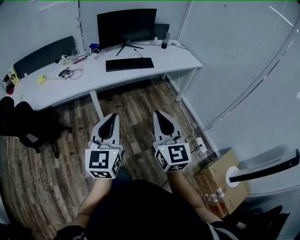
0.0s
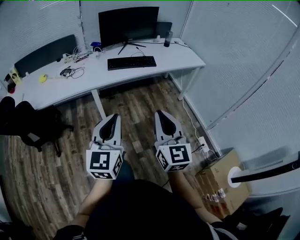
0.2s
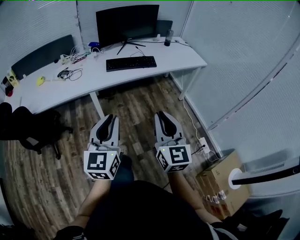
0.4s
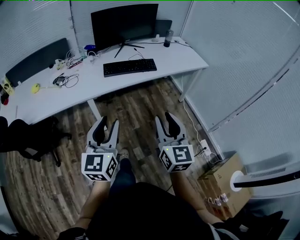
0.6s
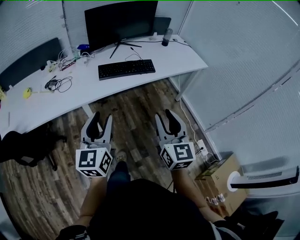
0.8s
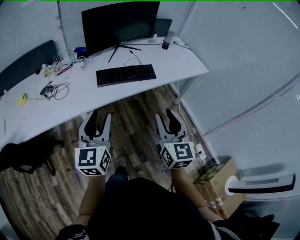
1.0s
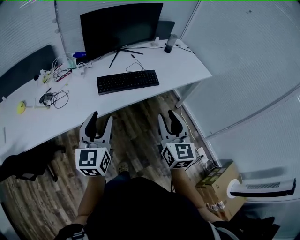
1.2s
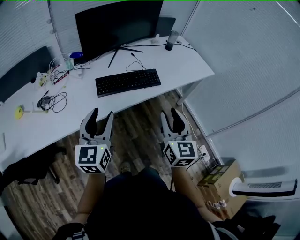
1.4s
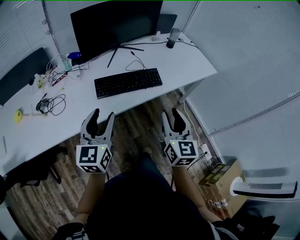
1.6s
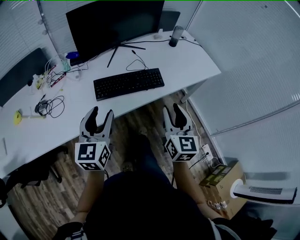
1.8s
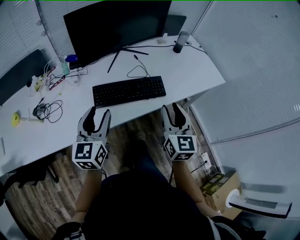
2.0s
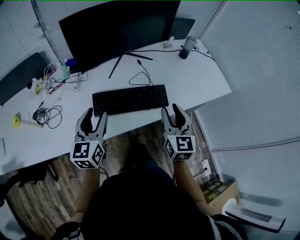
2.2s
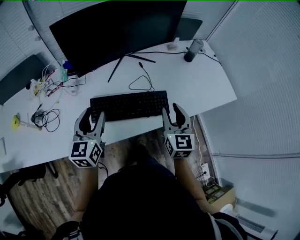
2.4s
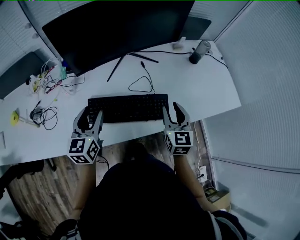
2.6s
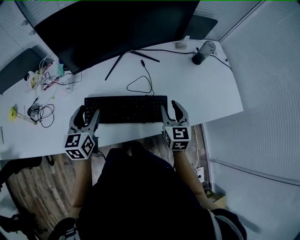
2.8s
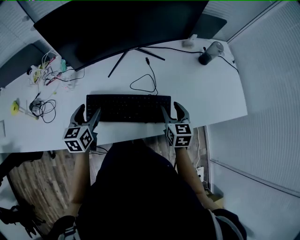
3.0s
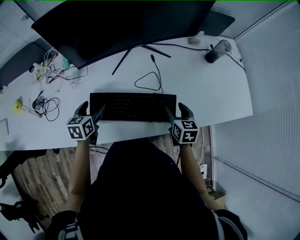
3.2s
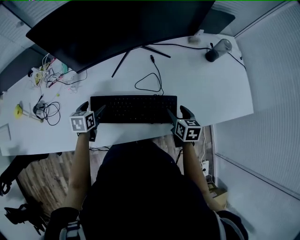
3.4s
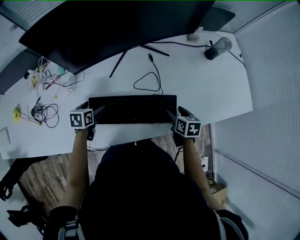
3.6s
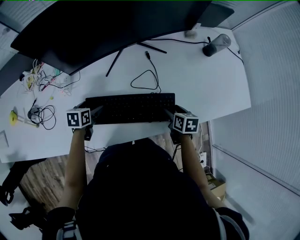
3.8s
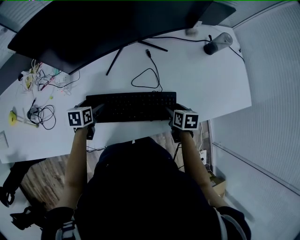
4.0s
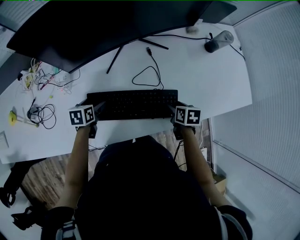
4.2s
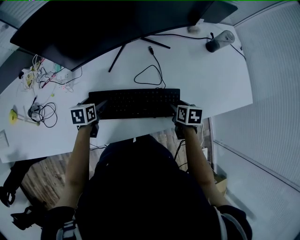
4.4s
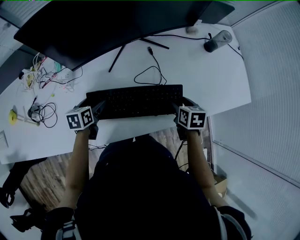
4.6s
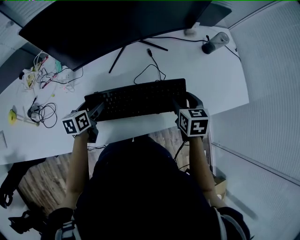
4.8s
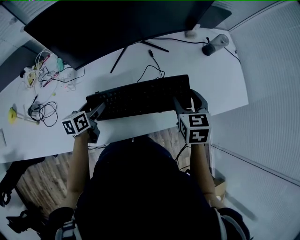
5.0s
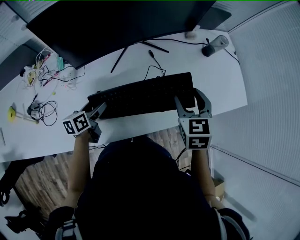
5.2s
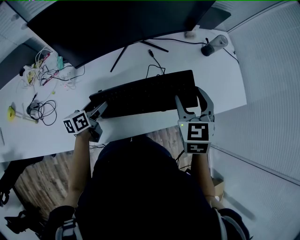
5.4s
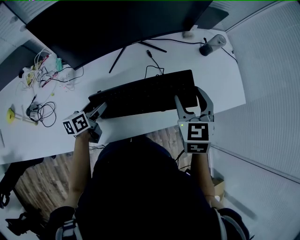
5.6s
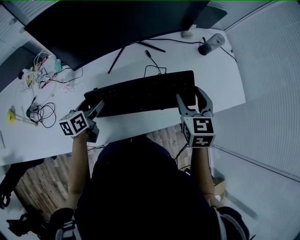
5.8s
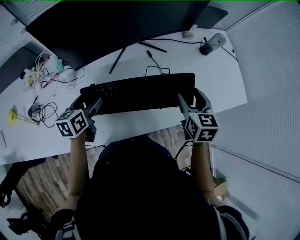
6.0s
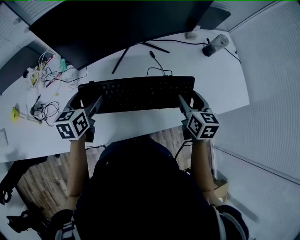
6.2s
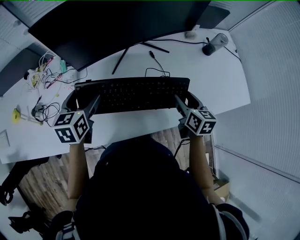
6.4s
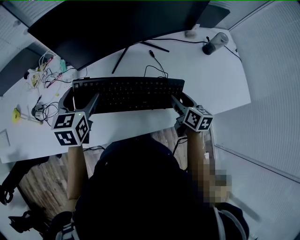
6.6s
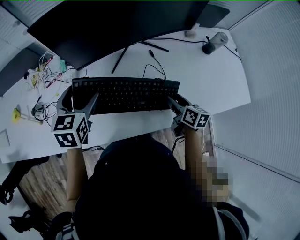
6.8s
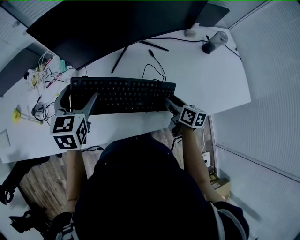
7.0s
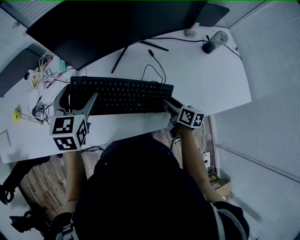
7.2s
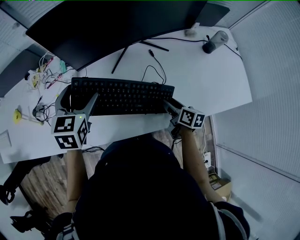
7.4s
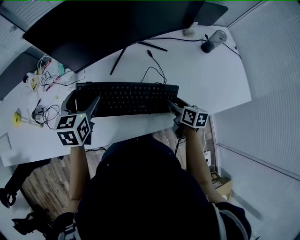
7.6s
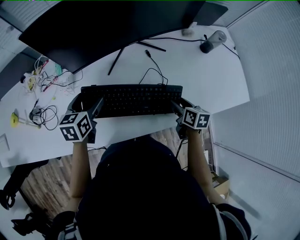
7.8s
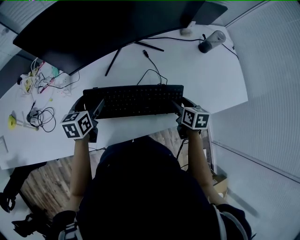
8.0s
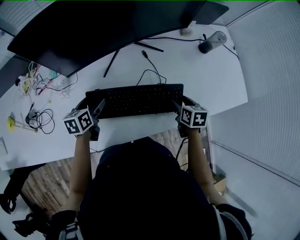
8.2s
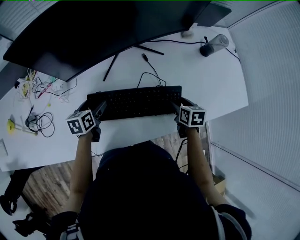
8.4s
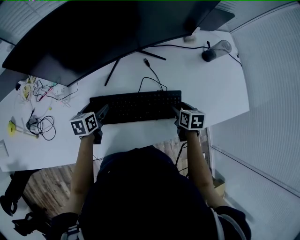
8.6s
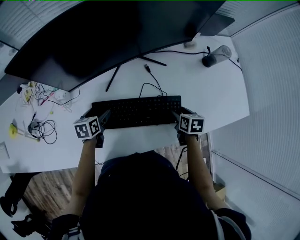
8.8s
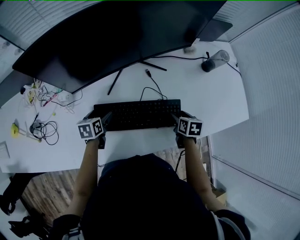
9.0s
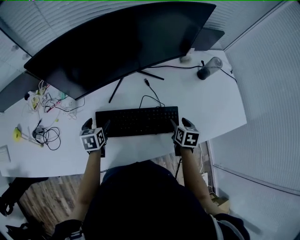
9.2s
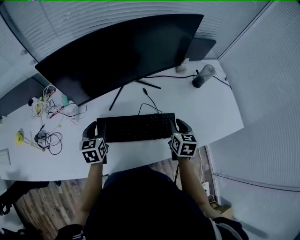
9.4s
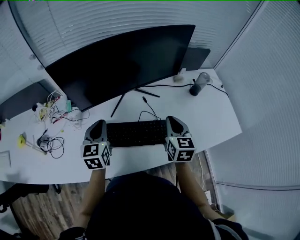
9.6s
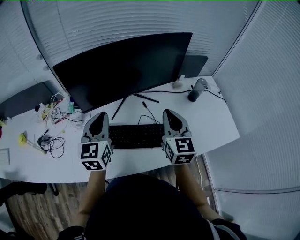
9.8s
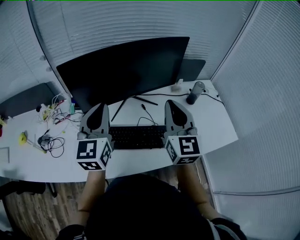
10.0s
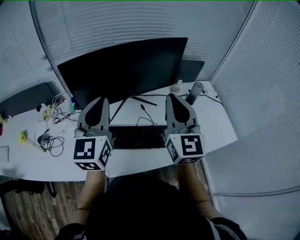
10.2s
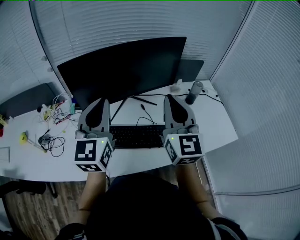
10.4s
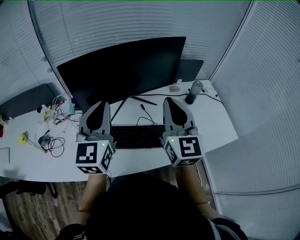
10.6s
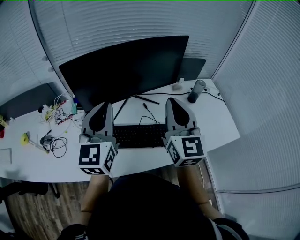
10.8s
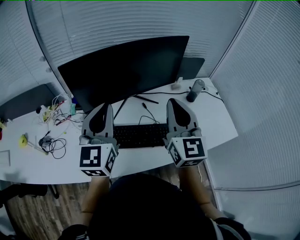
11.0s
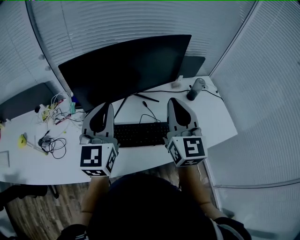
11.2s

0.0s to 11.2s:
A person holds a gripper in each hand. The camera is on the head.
0.0s to 1.6s: The pair of grippers is taken forward, roughly 40 cm. The right gripper opens its fingers. The left gripper opens its fingers.
1.6s to 3.2s: Both grippers travel together forward and downward, approximately 40 cm. The left gripper points its fingers approximately 30 degrees further downward, and opens its fingers. Meanwhile the right gripper tilts its fingers approximately 30 degrees downward, and opens.
3.2s to 4.8s: The right gripper shifts some 5 cm upward. Meanwhile the left gripper moves roughly 10 cm downward and comes back.
4.8s to 6.4s: The right gripper travels upward and back again, roughly 10 cm each way, and changes its angle by roughly 20 degrees, while the left gripper is displaced upward by about 15 cm, and swivels about 20 degrees.
6.4s to 8.0s: The grippers both shift downward by roughly 10 cm.
8.0s to 9.6s: The grippers both shift upward by about 15 cm. The right gripper swivels about 30 degrees, and closes its fingers, while the left gripper swivels some 30 degrees, and closes.
9.6s to 11.2s: Both grippers move upward, about 20 cm. The right gripper turns by approximately 30 degrees. The left gripper rotates approximately 20 degrees.

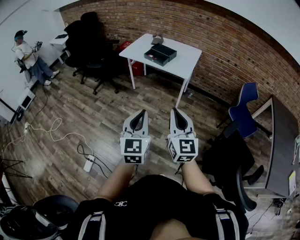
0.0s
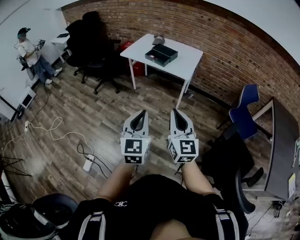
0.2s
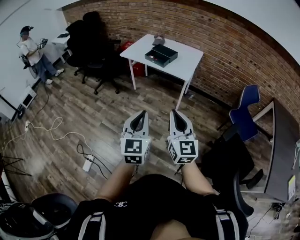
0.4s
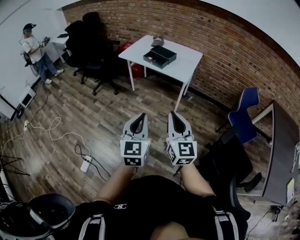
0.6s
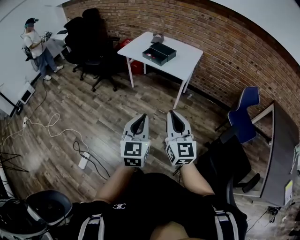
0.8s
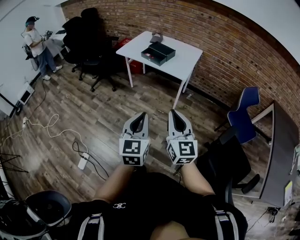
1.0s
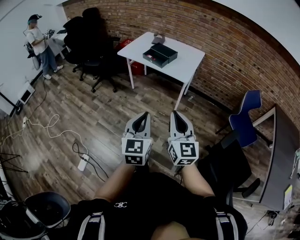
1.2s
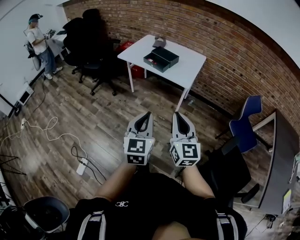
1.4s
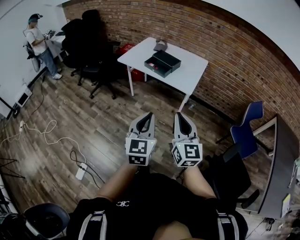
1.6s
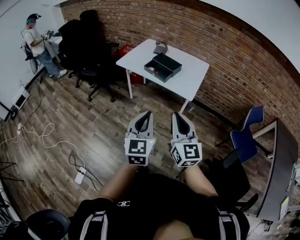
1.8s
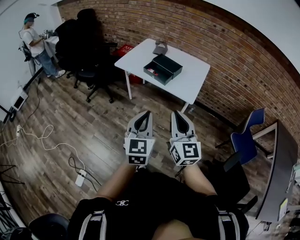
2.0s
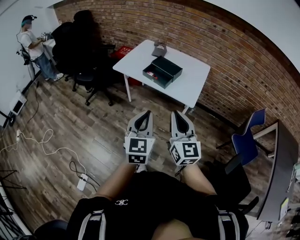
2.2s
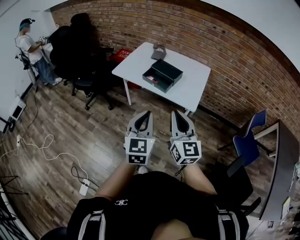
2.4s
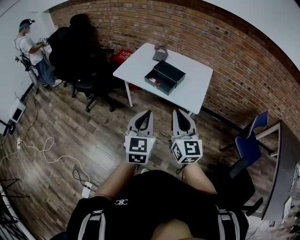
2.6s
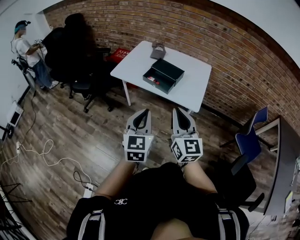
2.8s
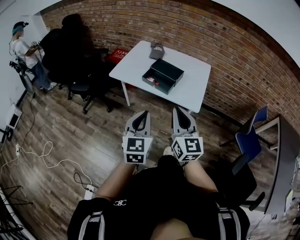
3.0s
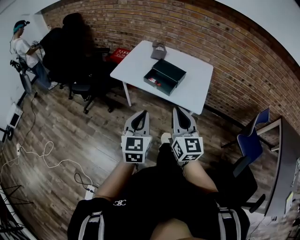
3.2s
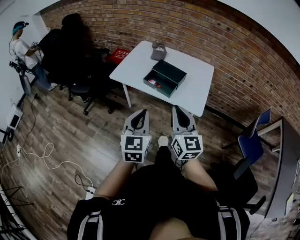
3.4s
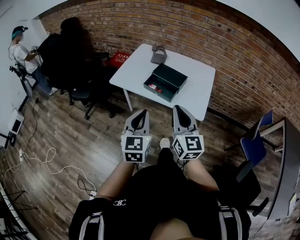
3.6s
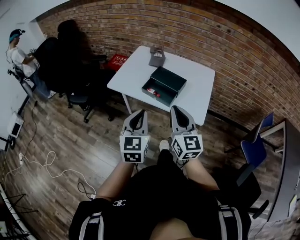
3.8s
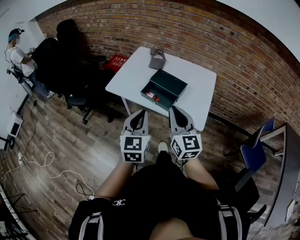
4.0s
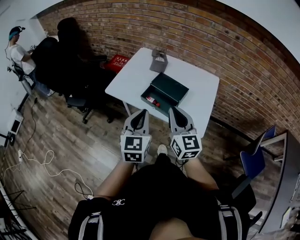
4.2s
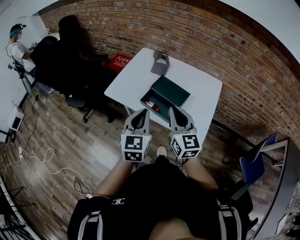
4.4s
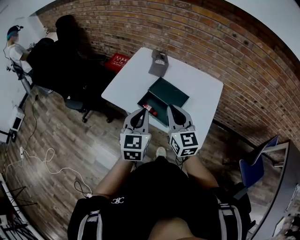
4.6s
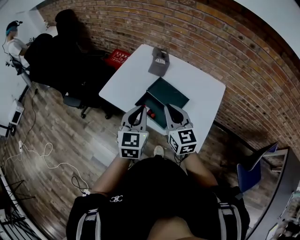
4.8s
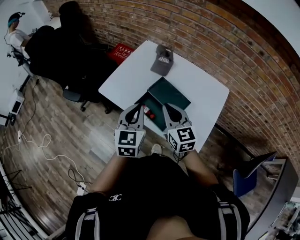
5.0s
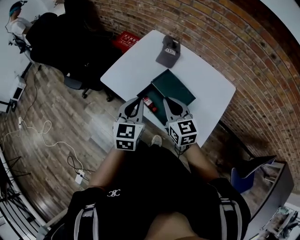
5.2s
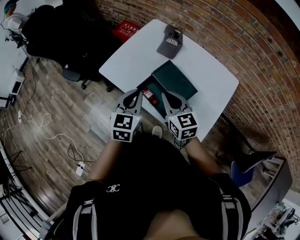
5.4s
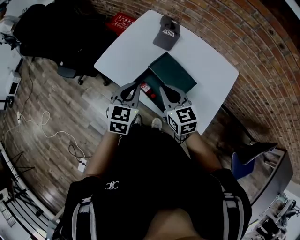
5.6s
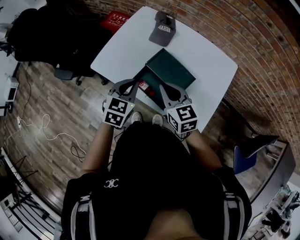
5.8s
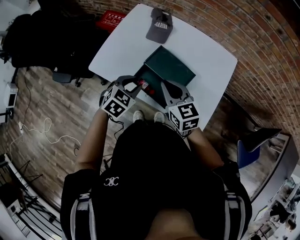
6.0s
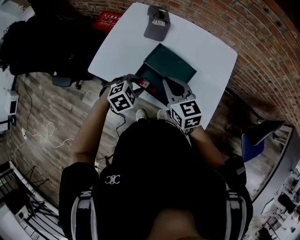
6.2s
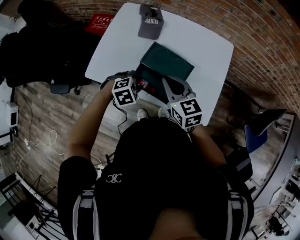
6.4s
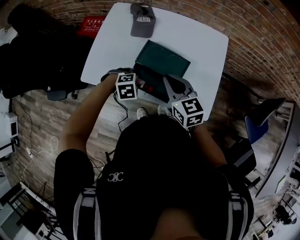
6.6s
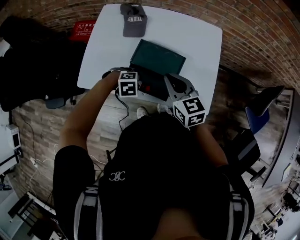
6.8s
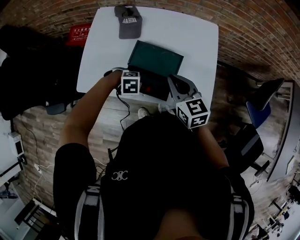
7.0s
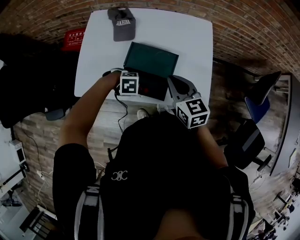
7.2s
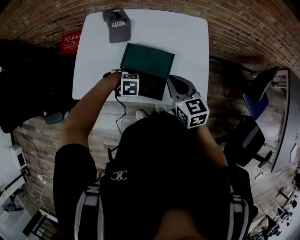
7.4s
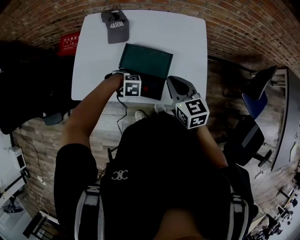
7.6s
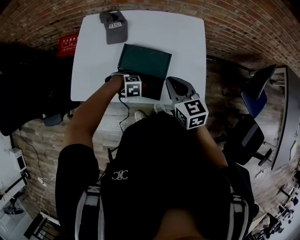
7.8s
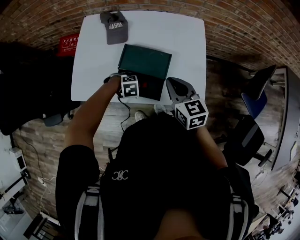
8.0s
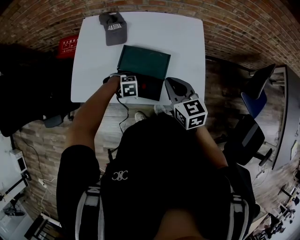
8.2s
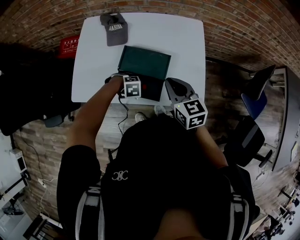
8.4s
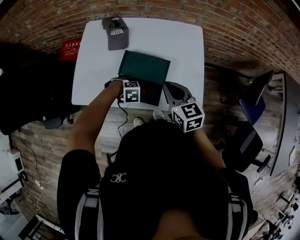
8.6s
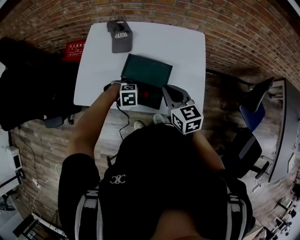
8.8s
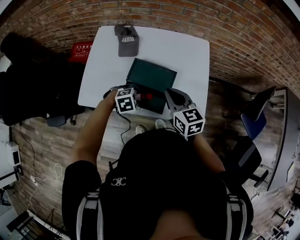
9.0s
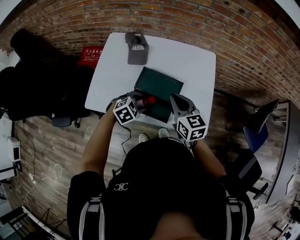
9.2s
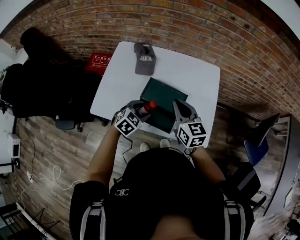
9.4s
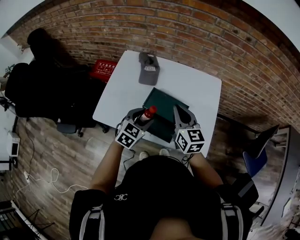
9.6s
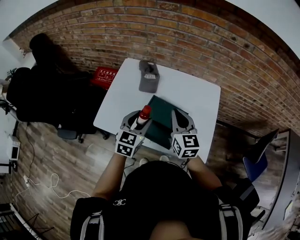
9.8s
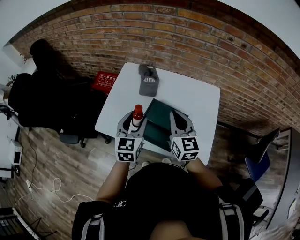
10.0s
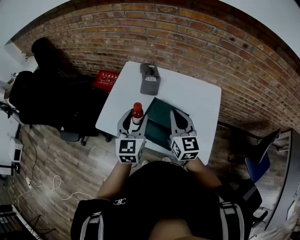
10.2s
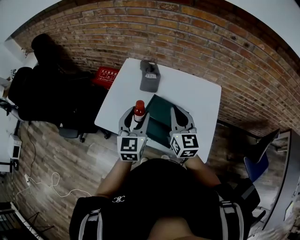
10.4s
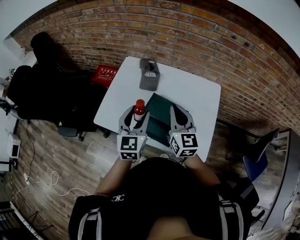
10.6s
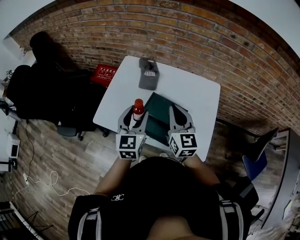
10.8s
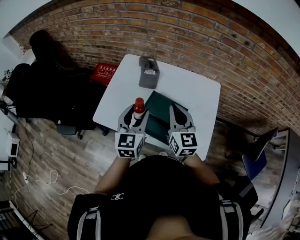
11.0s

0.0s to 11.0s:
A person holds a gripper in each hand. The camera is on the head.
0.0s to 1.6s: The two grippers go roughly 15 cm forward.
1.6s to 3.2s: Both grippers travel together forward, roughly 25 cm.
3.2s to 4.8s: The grippers both shift forward by about 35 cm.
4.8s to 6.2s: The left gripper travels downward by some 20 cm, tilts its fingers about 40 degrees downward, and opens. The right gripper shifts some 10 cm downward.
6.2s to 7.8s: The right gripper moves roughly 10 cm, and swivels roughly 20 degrees. Meanwhile the left gripper is displaced downward by approximately 15 cm, and changes its angle by roughly 50 degrees.
7.8s to 9.4s: The left gripper travels upward by approximately 15 cm, and points its fingers some 40 degrees further upward, while the right gripper moves approximately 10 cm.
9.4s to 11.0s: The right gripper moves upward, some 5 cm; the left gripper shifts roughly 15 cm upward, and tilts its fingers roughly 30 degrees upward.

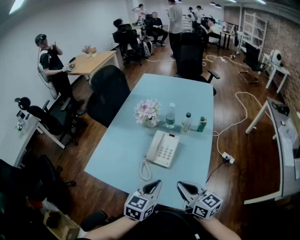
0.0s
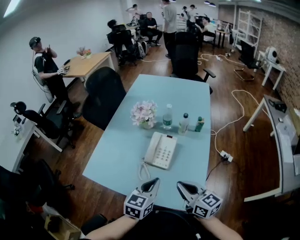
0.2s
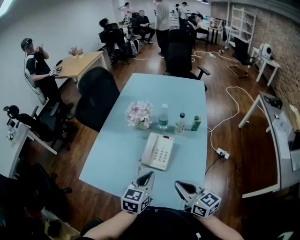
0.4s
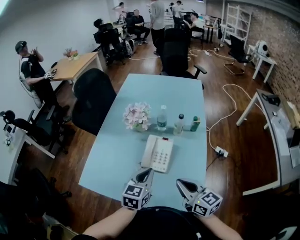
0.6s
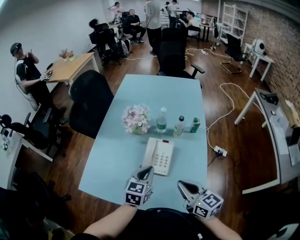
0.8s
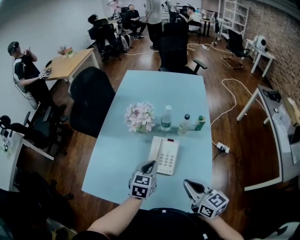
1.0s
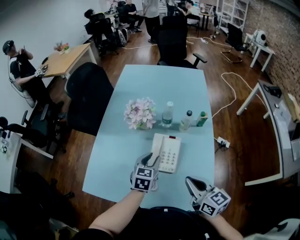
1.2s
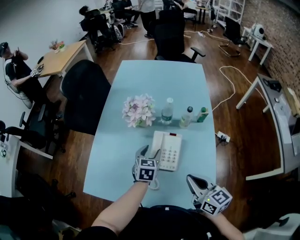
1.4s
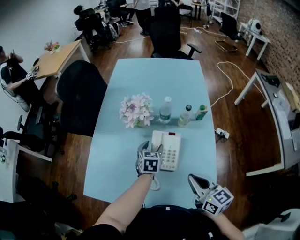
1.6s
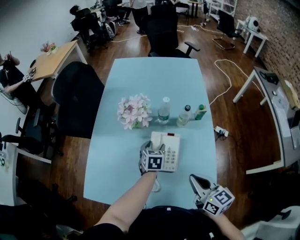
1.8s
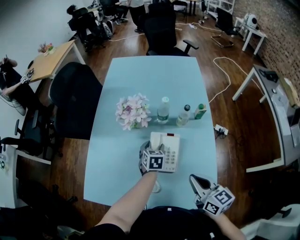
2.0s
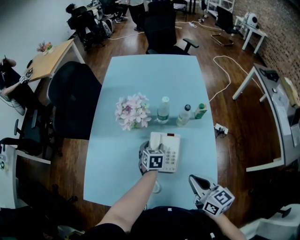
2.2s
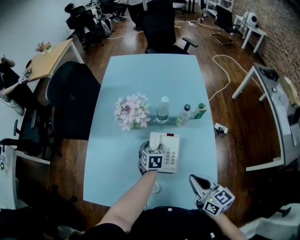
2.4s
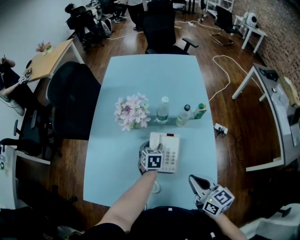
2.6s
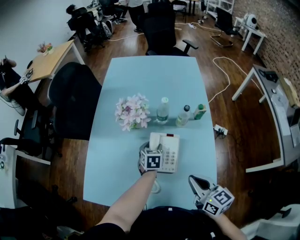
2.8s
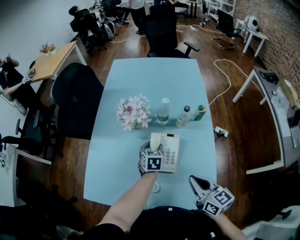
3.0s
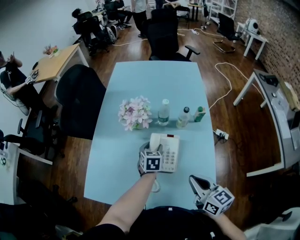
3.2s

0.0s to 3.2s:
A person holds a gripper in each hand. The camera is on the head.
0.0s to 1.6s: The right gripper heads forward, covering approximately 10 cm. The left gripper moves forward and downward, approximately 30 cm, and opens its fingers.
1.6s to 3.2s: The grippers make only small movements.
